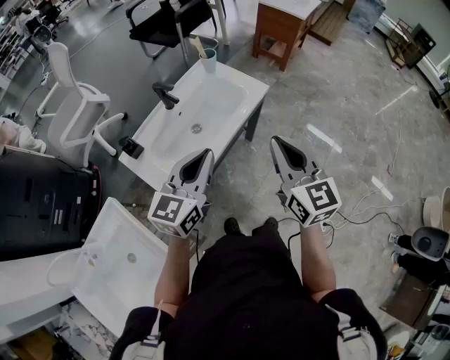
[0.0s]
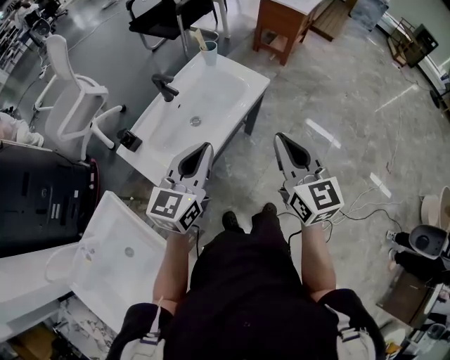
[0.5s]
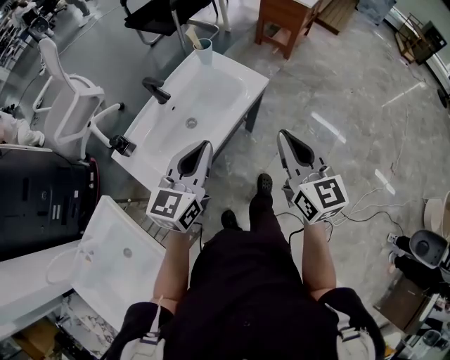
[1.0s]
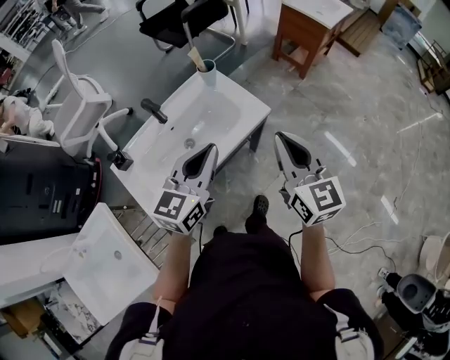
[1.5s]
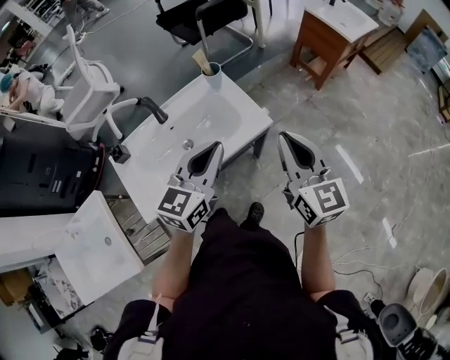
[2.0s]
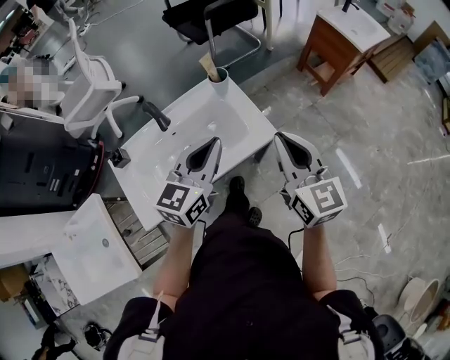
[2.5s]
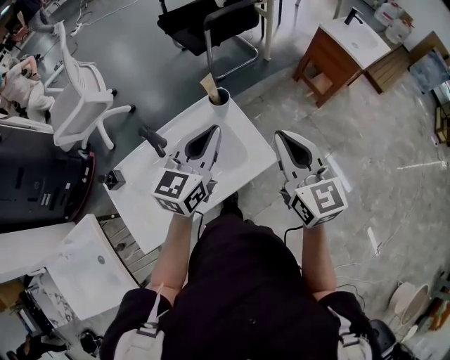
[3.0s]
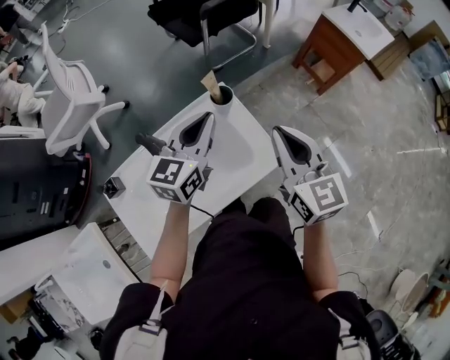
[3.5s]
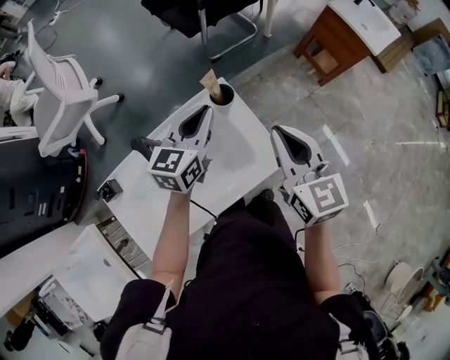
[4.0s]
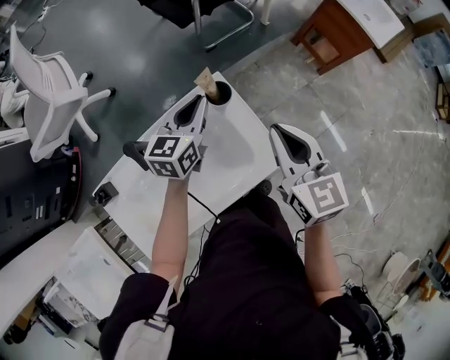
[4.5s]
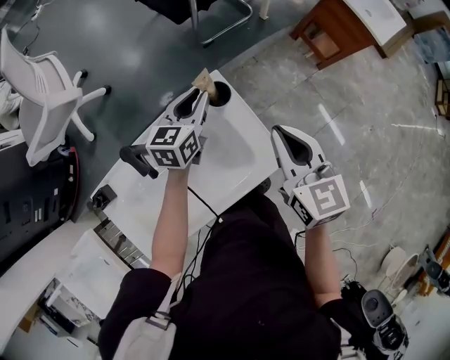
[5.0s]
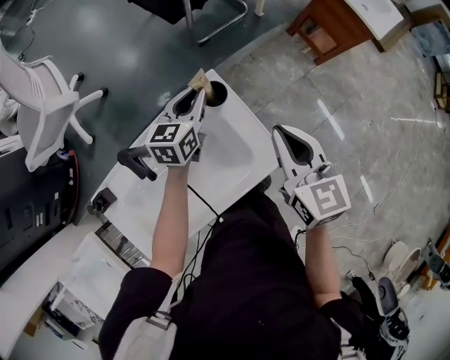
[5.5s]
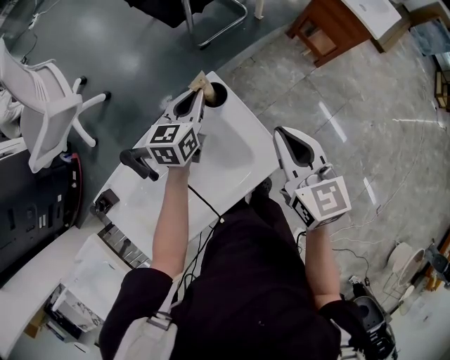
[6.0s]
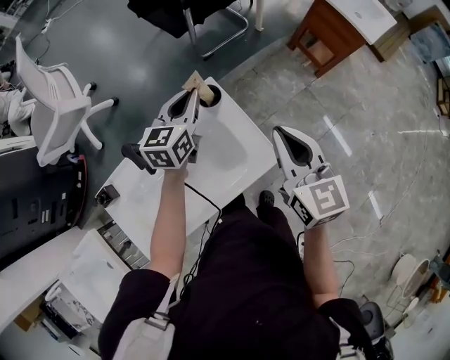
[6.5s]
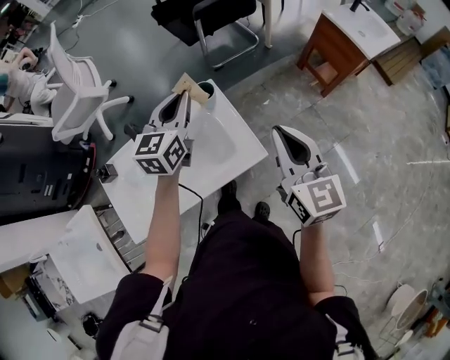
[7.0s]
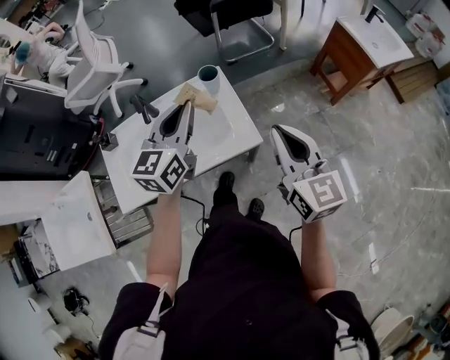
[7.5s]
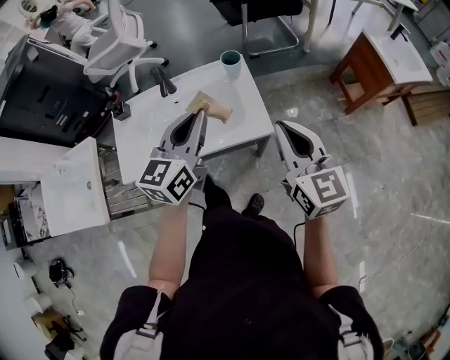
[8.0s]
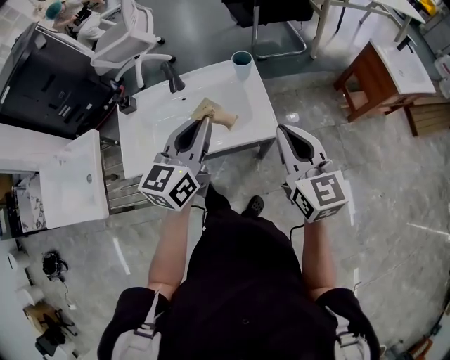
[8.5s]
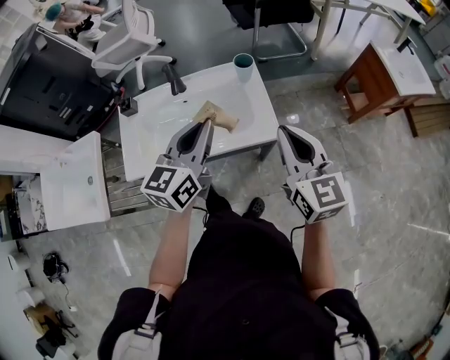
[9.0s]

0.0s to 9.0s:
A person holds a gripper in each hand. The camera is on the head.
0.0s to 2.0s: The two grippers go approximately 25 cm forward and to the right.
2.0s to 4.5s: The left gripper moves forward and downward, about 35 cm. The right gripper travels forward by roughly 25 cm.
4.5s to 7.0s: The right gripper heads to the right, backward and upward, covering about 10 cm. The left gripper goes approximately 10 cm upward and backward.
7.0s to 9.0s: The left gripper is displaced backward by approximately 25 cm, while the right gripper shifts roughly 10 cm backward.

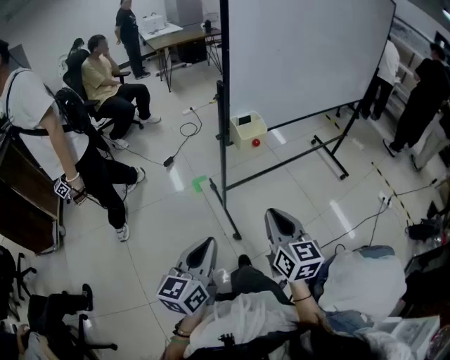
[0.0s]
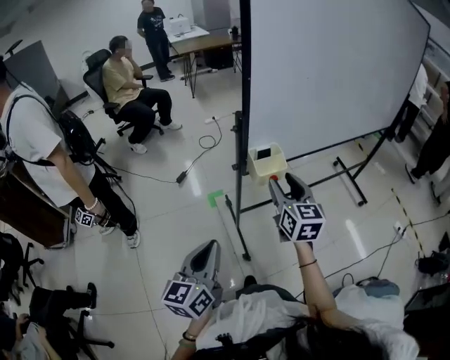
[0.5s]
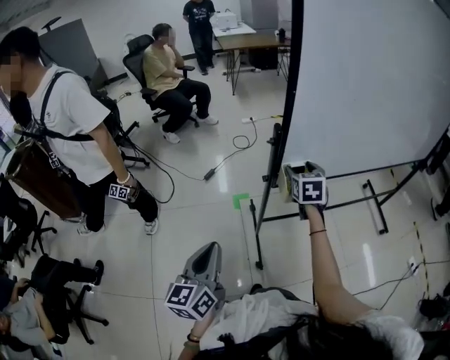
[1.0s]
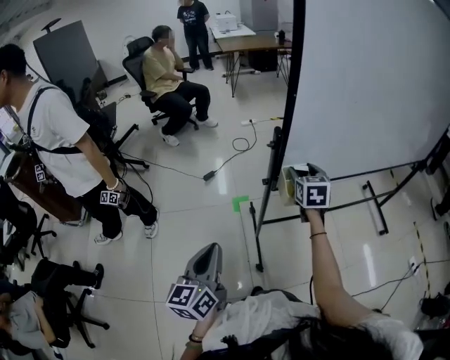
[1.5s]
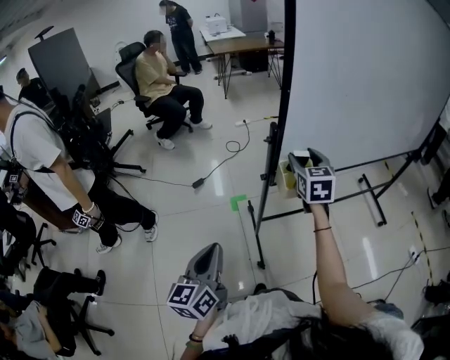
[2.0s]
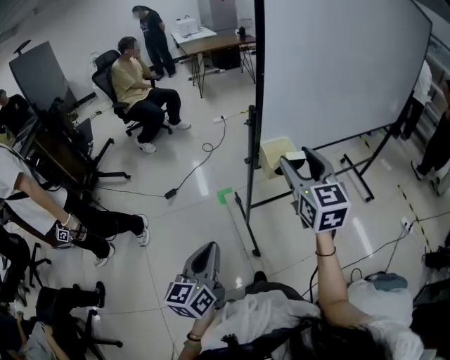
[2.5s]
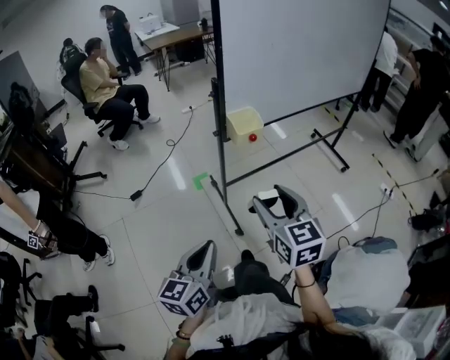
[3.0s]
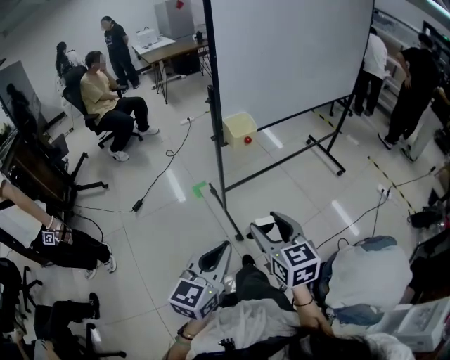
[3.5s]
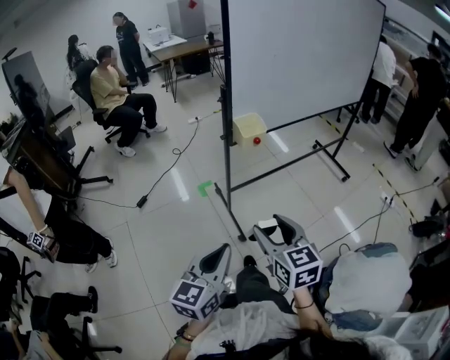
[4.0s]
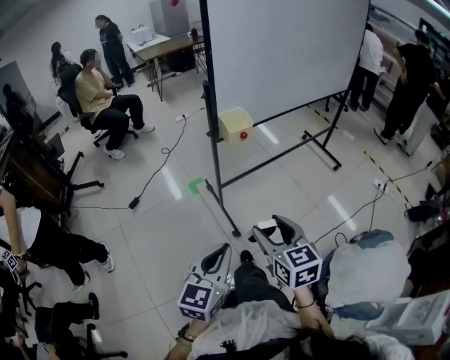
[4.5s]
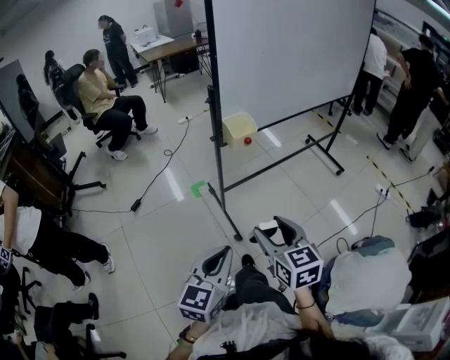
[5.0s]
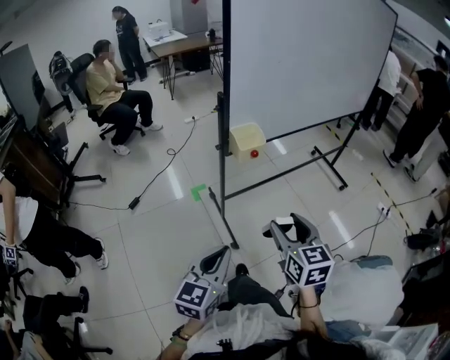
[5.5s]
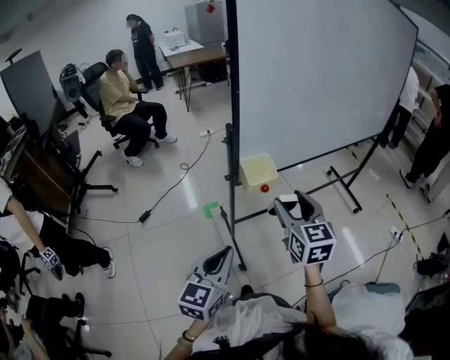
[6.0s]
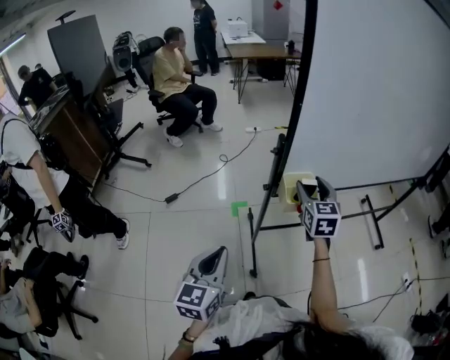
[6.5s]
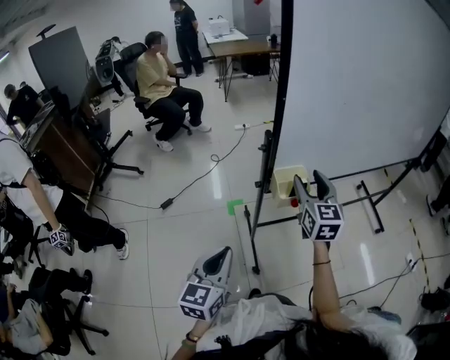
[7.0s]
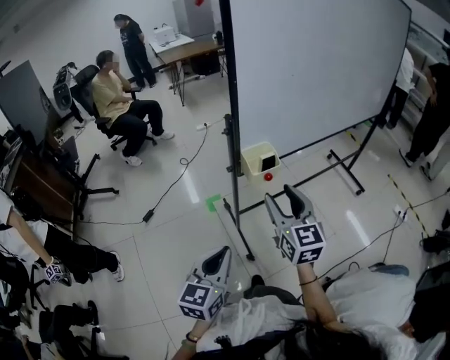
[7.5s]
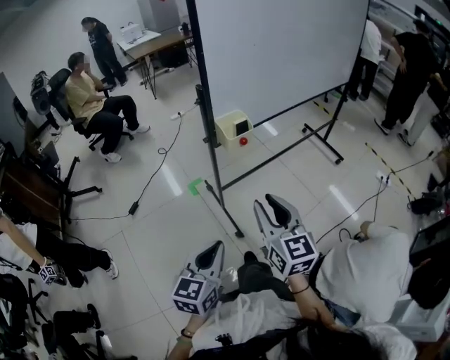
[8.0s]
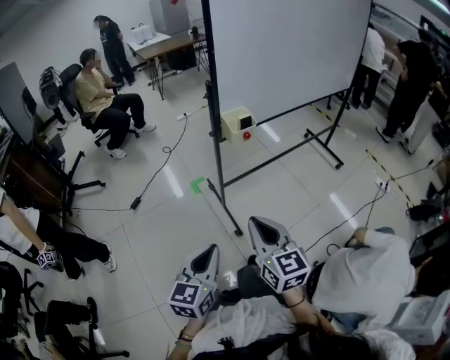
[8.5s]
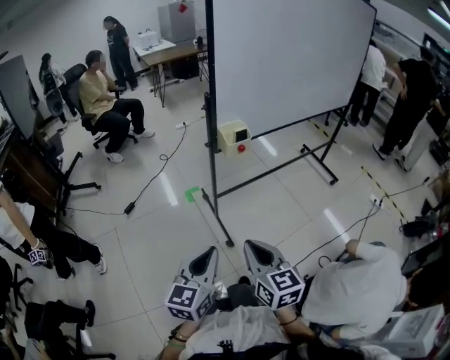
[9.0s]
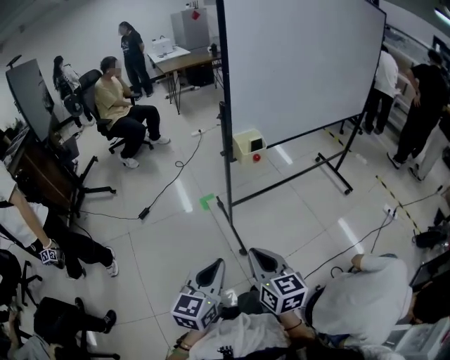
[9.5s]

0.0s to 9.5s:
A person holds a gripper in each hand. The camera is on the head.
0.0s to 2.0s: The left gripper travels forward by about 15 cm, and swivels roughly 20 degrees. The right gripper heads forward, covering roughly 35 cm, and opens up.
2.0s to 4.0s: The right gripper travels backward by some 50 cm; the left gripper goes about 20 cm backward and to the right, and turns by some 30 degrees.
4.0s to 5.5s: The left gripper is displaced forward by roughly 10 cm. The right gripper goes roughly 10 cm forward and to the right.
5.5s to 7.5s: The right gripper is displaced forward by approximately 15 cm. Meanwhile the left gripper heads forward, covering roughly 10 cm.
7.5s to 9.5s: The left gripper travels backward by approximately 15 cm. Meanwhile the right gripper travels backward by roughly 25 cm, and closes up.

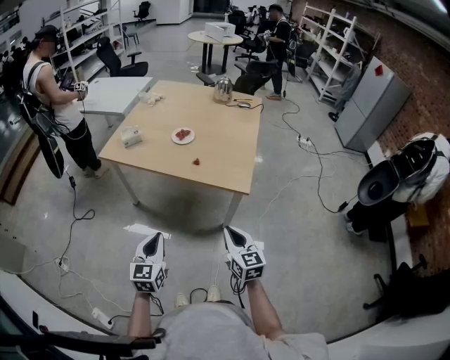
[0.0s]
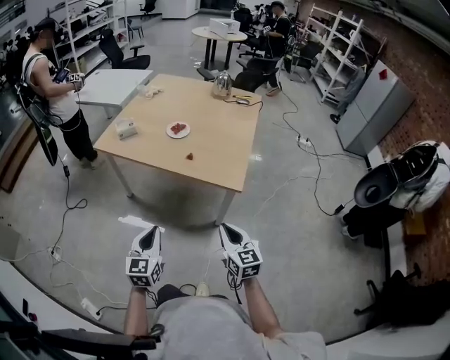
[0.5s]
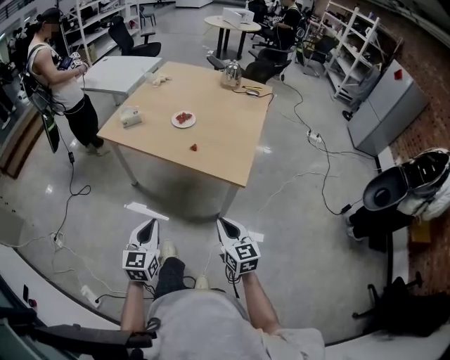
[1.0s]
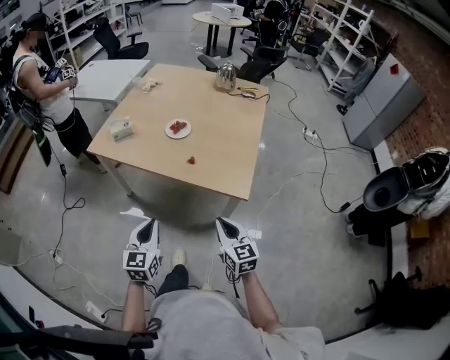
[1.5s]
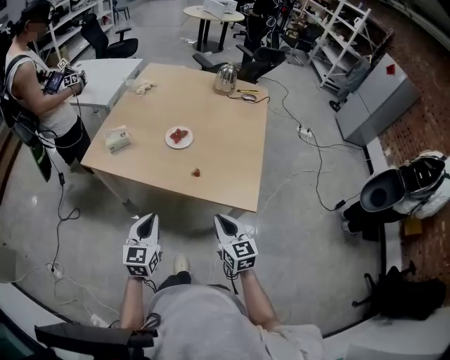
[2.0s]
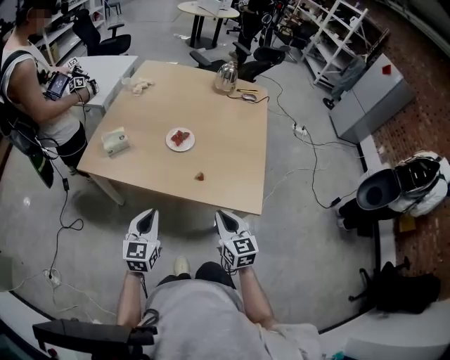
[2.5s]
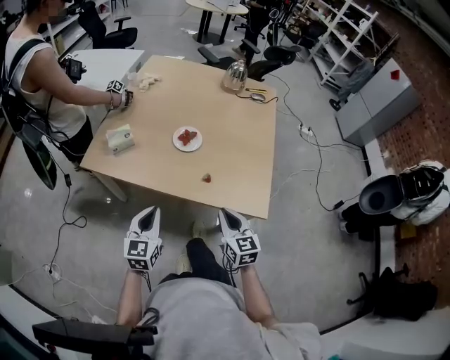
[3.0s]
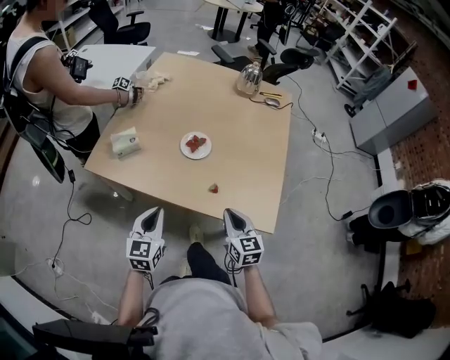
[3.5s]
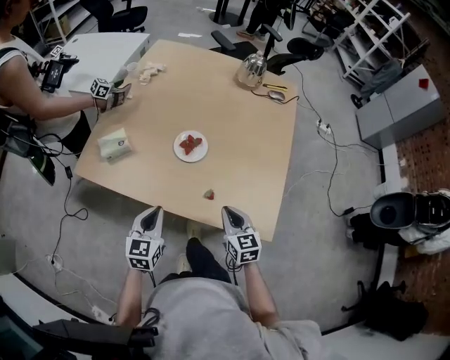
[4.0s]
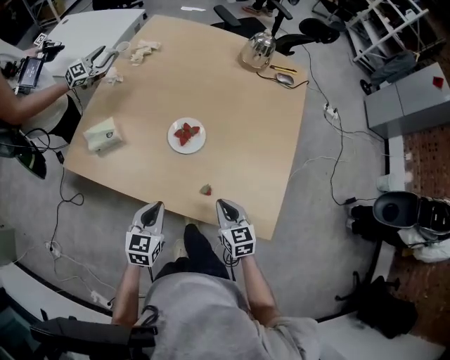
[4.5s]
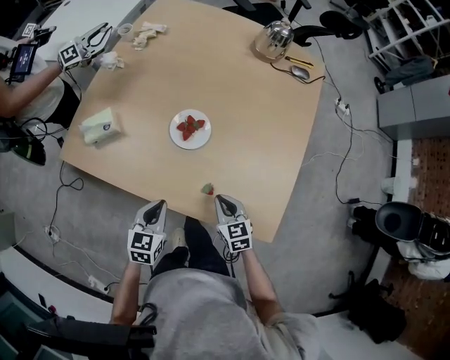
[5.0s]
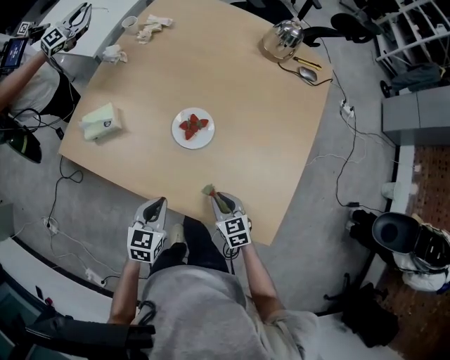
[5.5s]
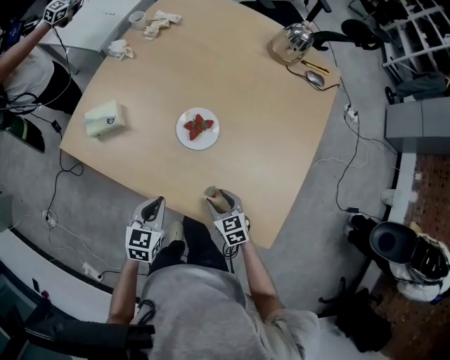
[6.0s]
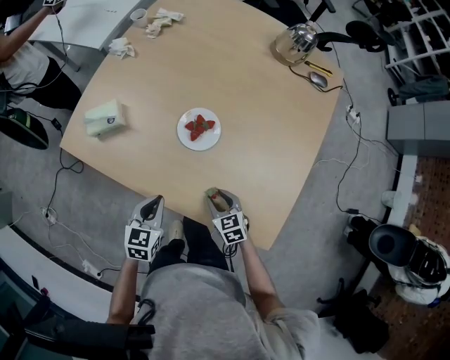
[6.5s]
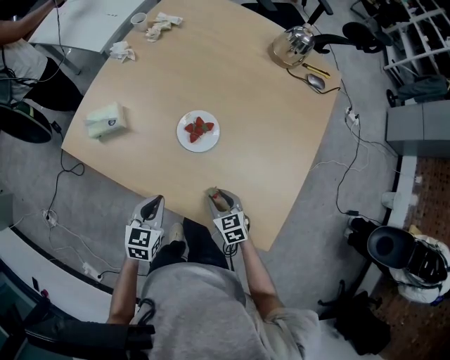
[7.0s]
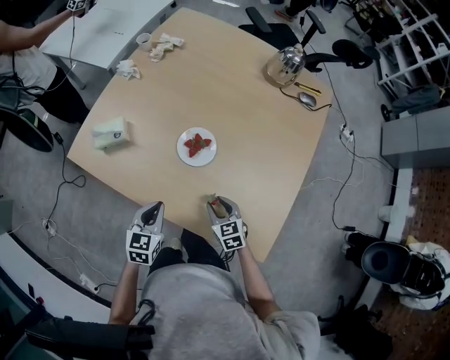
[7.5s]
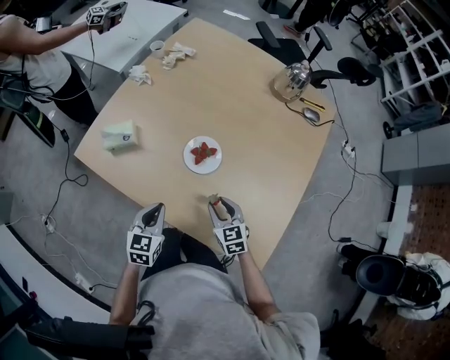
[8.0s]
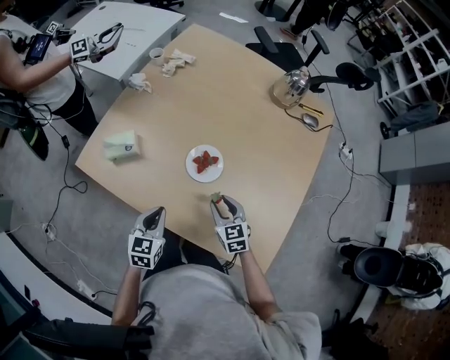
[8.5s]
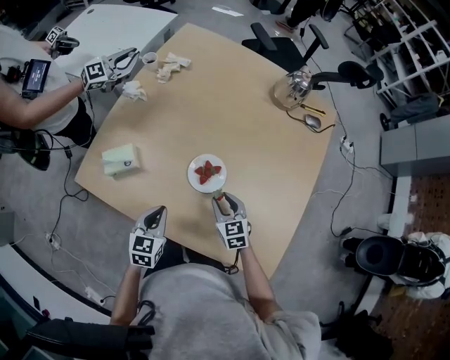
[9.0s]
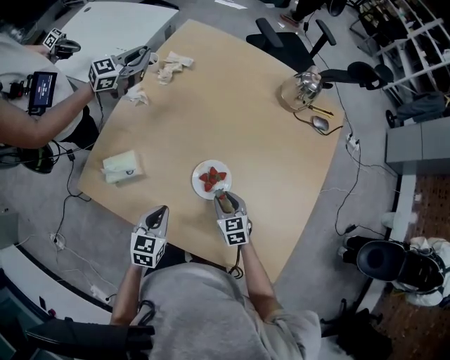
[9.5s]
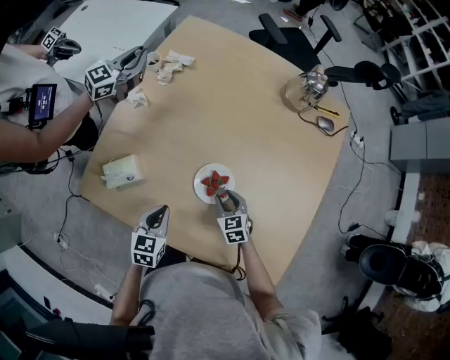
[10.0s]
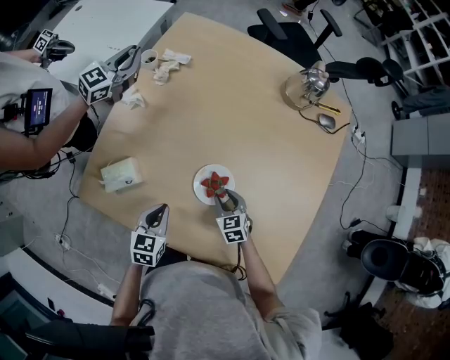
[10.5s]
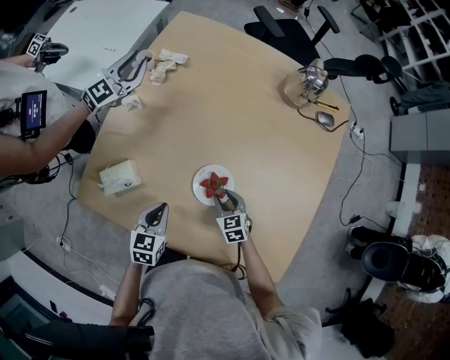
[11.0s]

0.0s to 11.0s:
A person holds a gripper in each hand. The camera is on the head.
0.0s to 2.0s: Both grippers travel together forward, approximately 20 cm.
2.0s to 3.5s: Both grippers move forward, about 15 cm.
3.5s to 5.5s: The right gripper shifts about 20 cm downward and forward, and turns by approximately 30 degrees. Meanwhile the left gripper is displaced downward, forward and to the right by some 20 cm, and turns by about 20 degrees.
5.5s to 7.5s: The right gripper opens up.
7.5s to 9.0s: The two grippers go roughly 10 cm forward.
9.0s to 11.0s: The right gripper is displaced downward and forward by approximately 10 cm. The left gripper travels forward by roughly 10 cm.
